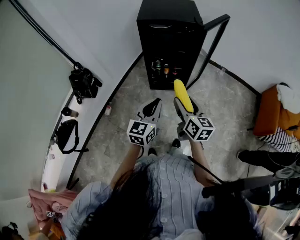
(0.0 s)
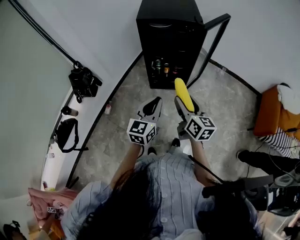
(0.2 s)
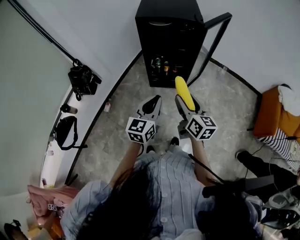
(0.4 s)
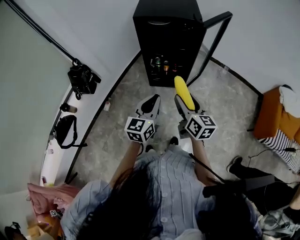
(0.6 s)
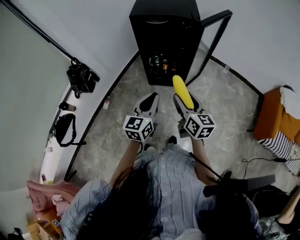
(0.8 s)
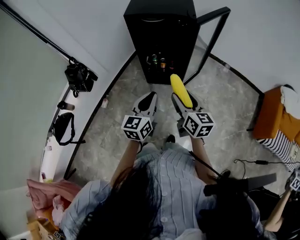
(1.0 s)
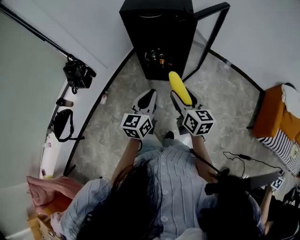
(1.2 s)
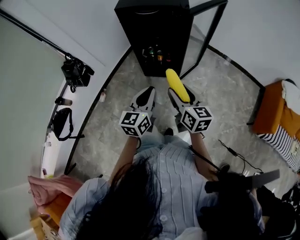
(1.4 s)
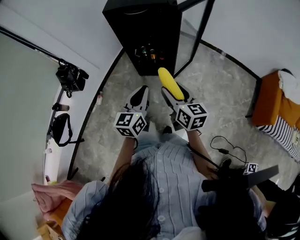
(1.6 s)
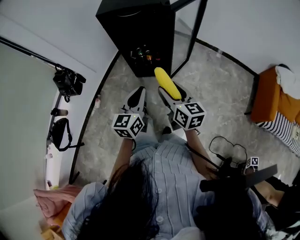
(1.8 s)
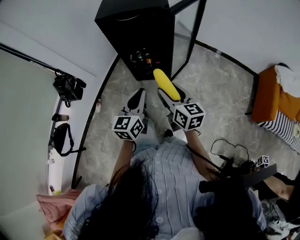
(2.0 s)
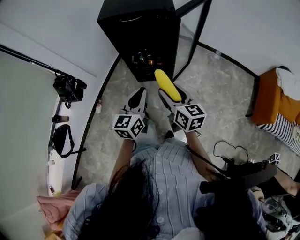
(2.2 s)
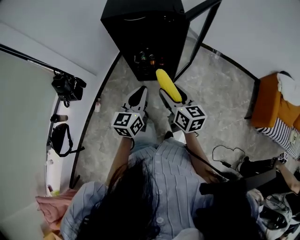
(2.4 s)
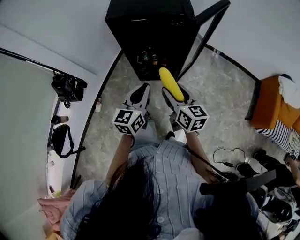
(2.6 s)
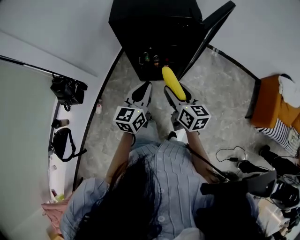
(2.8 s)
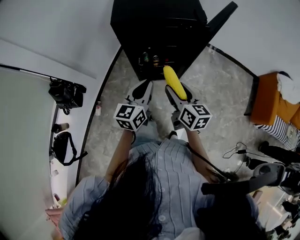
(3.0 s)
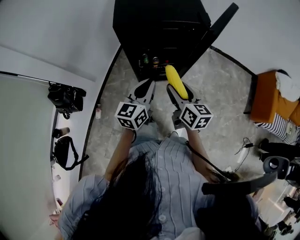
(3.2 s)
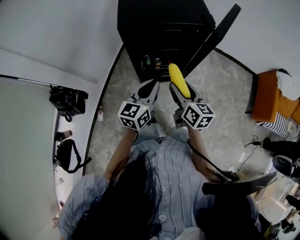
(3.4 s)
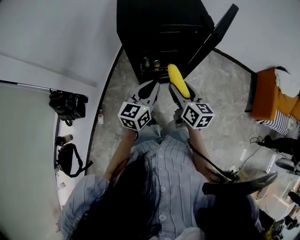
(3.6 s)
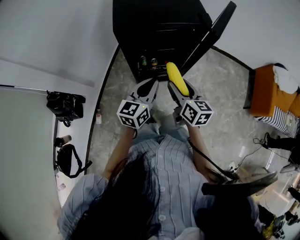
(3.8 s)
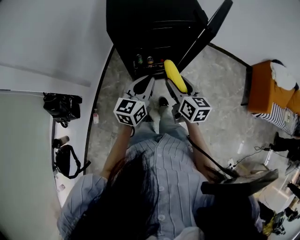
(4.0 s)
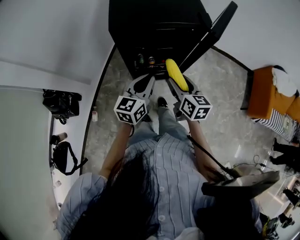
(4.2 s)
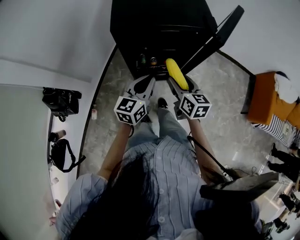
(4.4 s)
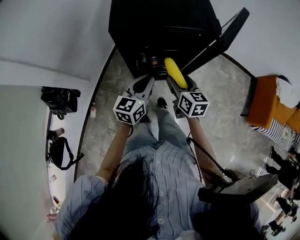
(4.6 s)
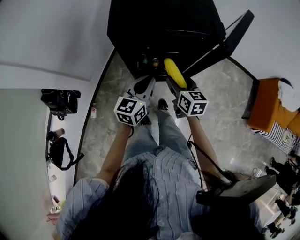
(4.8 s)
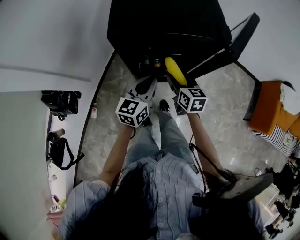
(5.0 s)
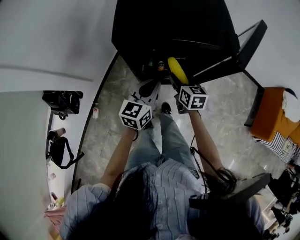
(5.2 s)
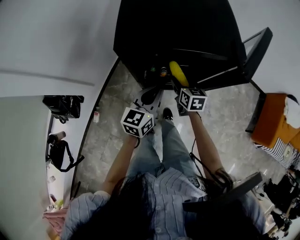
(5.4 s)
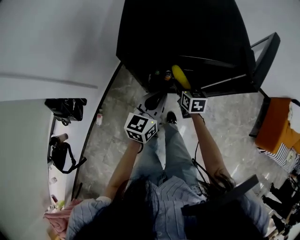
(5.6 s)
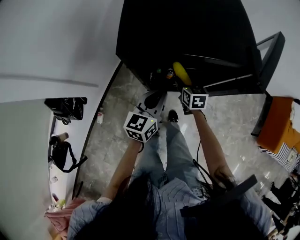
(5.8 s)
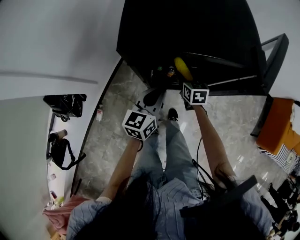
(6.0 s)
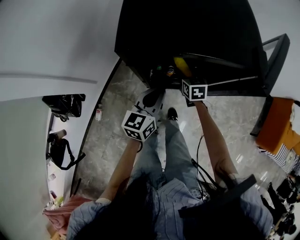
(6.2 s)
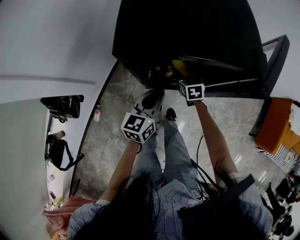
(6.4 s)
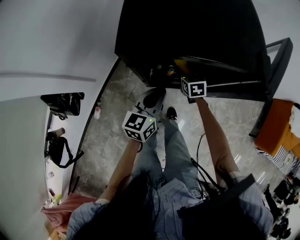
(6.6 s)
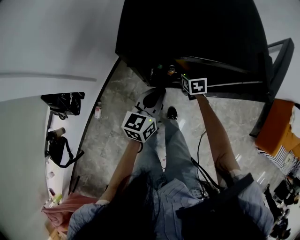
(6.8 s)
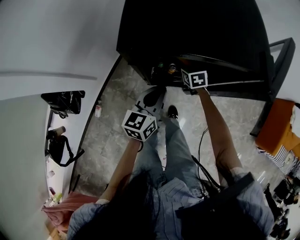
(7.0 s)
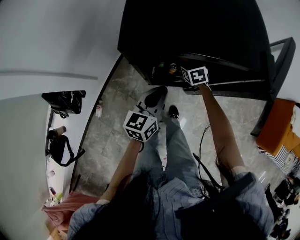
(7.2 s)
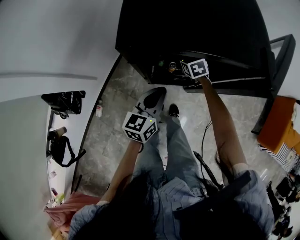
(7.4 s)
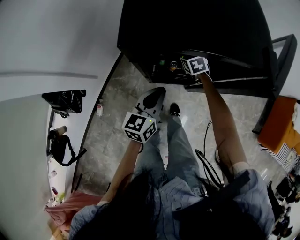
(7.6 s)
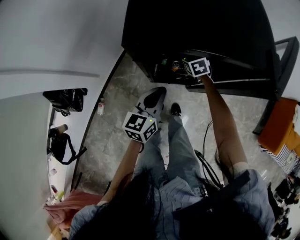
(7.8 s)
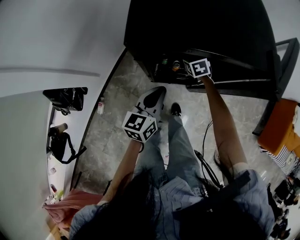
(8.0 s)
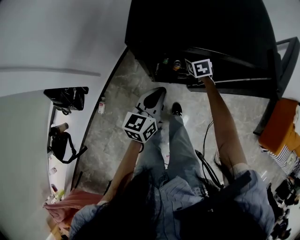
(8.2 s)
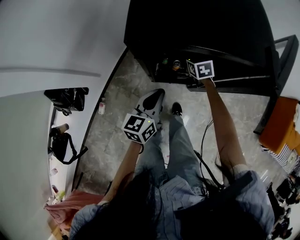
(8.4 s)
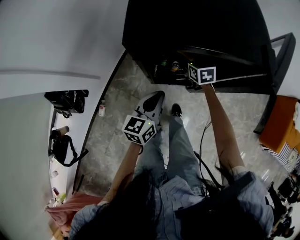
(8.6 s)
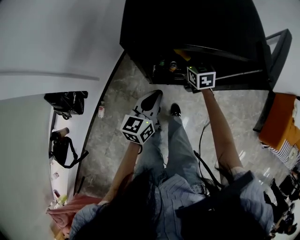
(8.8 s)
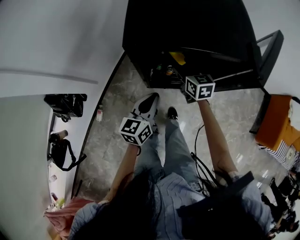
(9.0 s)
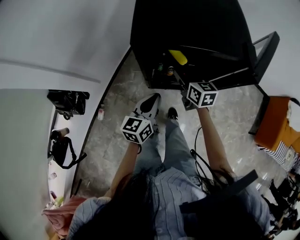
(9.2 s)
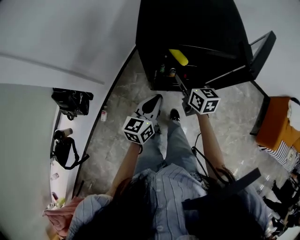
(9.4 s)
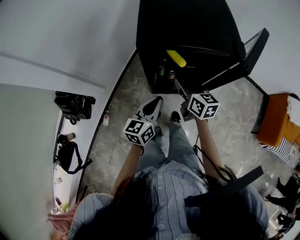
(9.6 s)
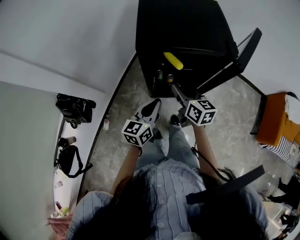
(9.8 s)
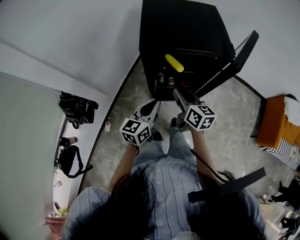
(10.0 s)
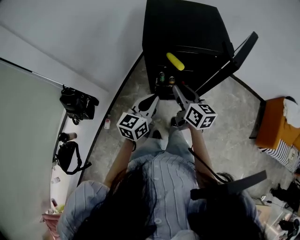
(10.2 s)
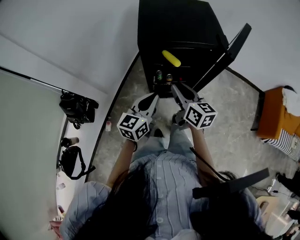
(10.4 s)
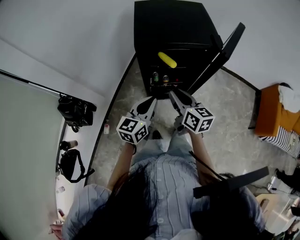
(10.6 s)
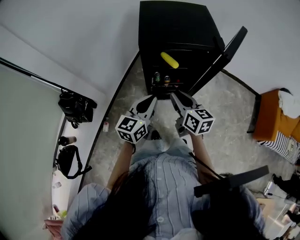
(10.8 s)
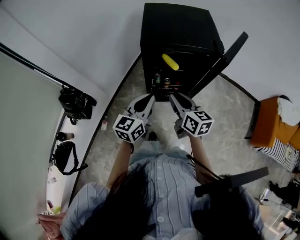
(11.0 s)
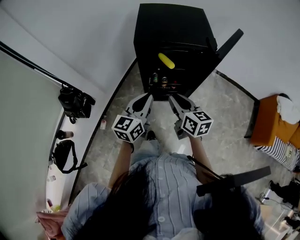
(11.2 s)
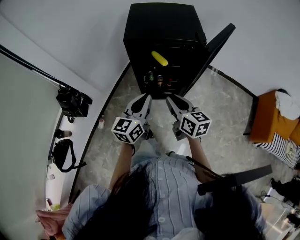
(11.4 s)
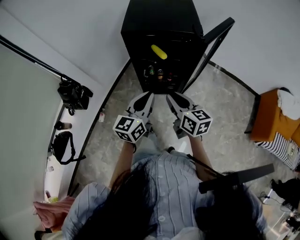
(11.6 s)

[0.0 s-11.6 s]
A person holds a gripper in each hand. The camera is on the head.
0.0 to 1.4 s: The left gripper moves to the right and forward, roughly 10 cm, while the right gripper travels to the right by about 10 cm.
1.4 to 2.8 s: Both grippers travel together forward and to the left, some 15 cm.
2.8 to 4.4 s: Both grippers travel together forward, approximately 10 cm.
4.4 to 5.8 s: The right gripper heads downward and forward, covering roughly 25 cm. Meanwhile the left gripper moves forward and downward, approximately 10 cm.
5.8 to 7.2 s: The right gripper travels forward by roughly 10 cm, and rotates some 20 degrees.
7.2 to 8.8 s: The right gripper is displaced upward by approximately 5 cm.
8.8 to 10.2 s: The right gripper shifts roughly 30 cm backward and upward, rotates about 30 degrees, and closes its fingers. The left gripper moves upward and backward, about 15 cm.
10.2 to 11.6 s: The right gripper moves backward and to the right, about 20 cm. Meanwhile the left gripper is displaced backward, to the right and upward by roughly 15 cm.

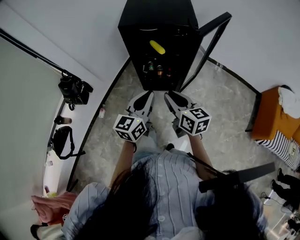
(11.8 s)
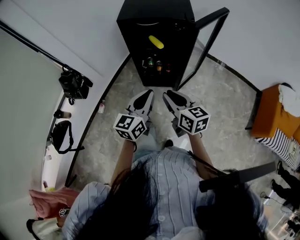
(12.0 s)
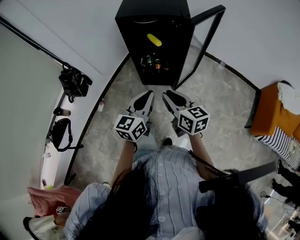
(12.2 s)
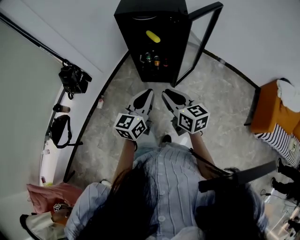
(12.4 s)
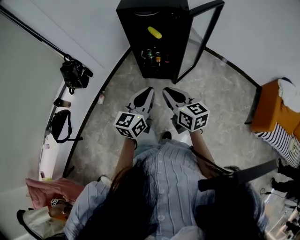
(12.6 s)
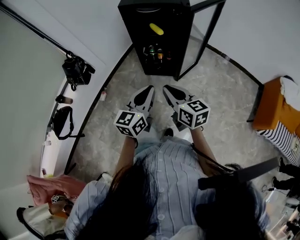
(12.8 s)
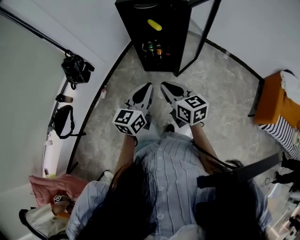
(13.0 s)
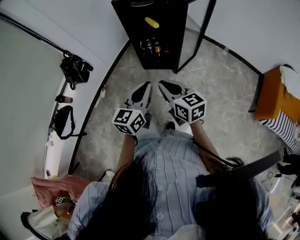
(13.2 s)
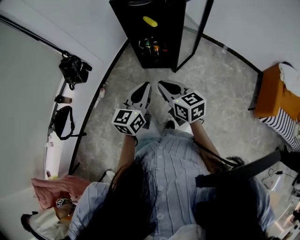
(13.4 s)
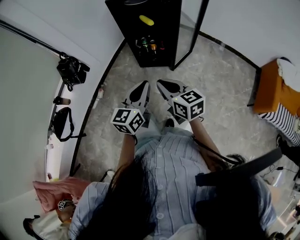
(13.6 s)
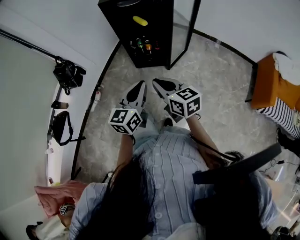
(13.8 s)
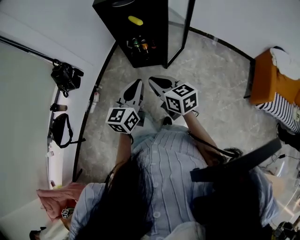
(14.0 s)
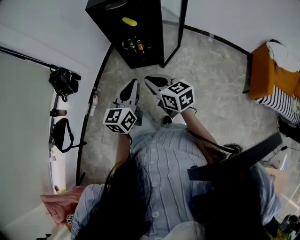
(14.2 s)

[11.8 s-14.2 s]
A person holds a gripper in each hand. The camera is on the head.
11.8 to 13.0 s: Both grippers travel together backward, about 15 cm.
13.0 to 14.2 s: There are only small adjustments of the grippers.

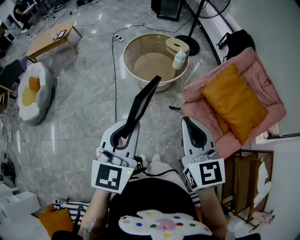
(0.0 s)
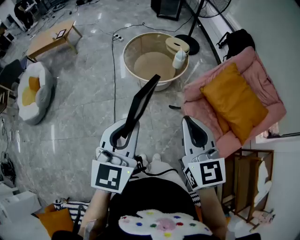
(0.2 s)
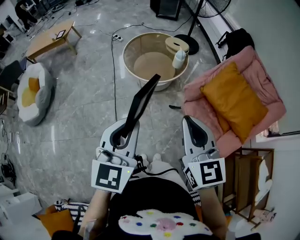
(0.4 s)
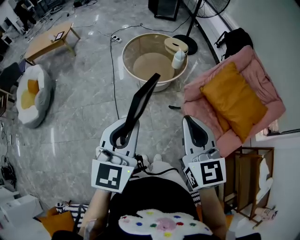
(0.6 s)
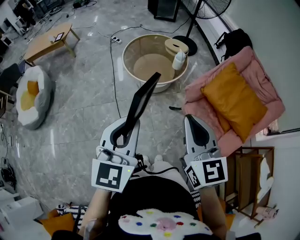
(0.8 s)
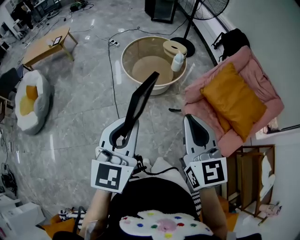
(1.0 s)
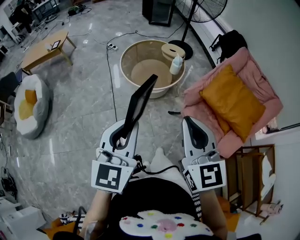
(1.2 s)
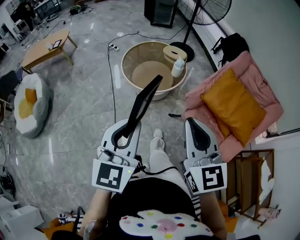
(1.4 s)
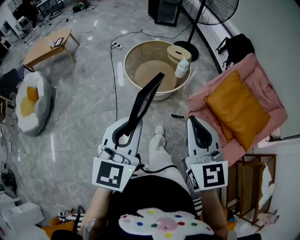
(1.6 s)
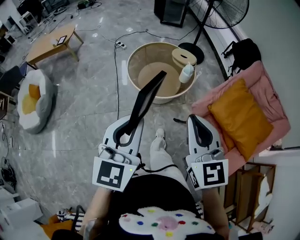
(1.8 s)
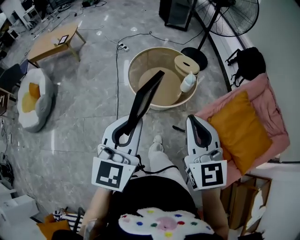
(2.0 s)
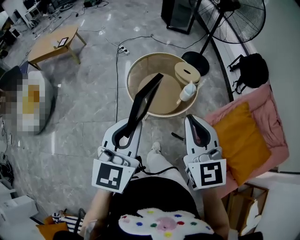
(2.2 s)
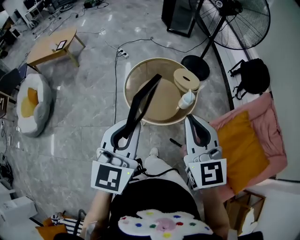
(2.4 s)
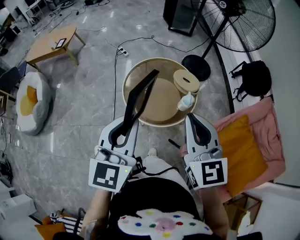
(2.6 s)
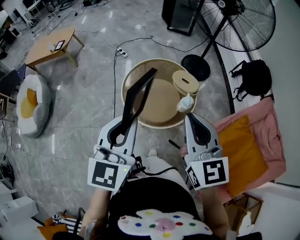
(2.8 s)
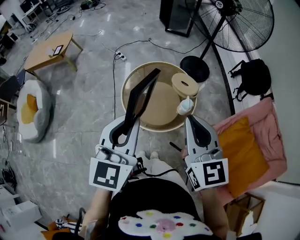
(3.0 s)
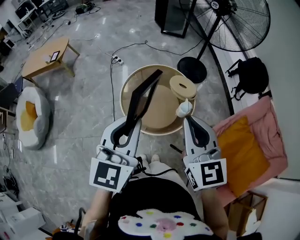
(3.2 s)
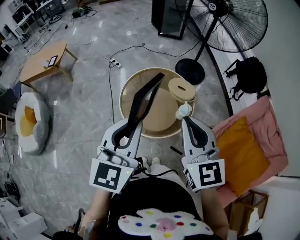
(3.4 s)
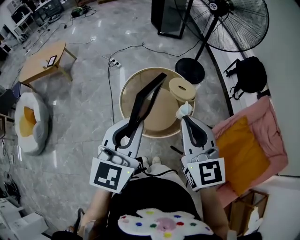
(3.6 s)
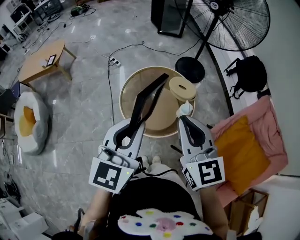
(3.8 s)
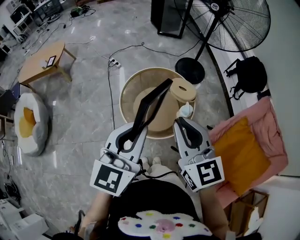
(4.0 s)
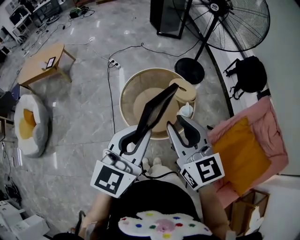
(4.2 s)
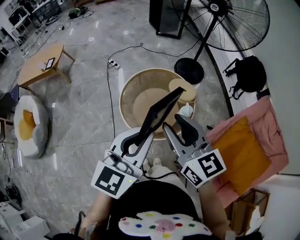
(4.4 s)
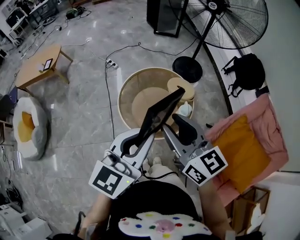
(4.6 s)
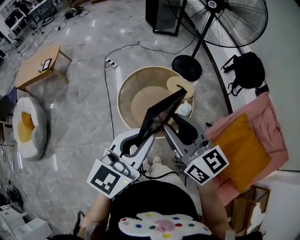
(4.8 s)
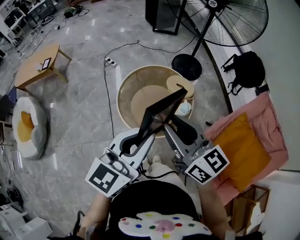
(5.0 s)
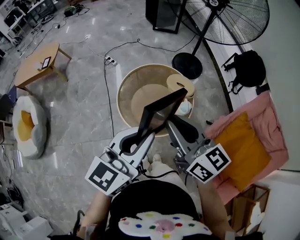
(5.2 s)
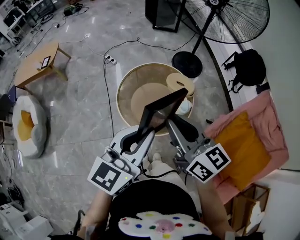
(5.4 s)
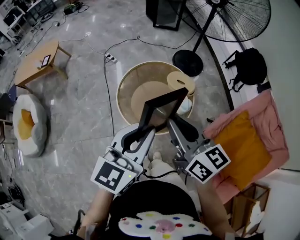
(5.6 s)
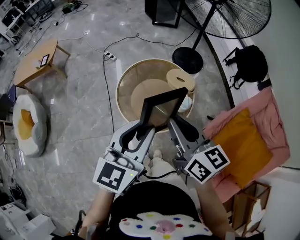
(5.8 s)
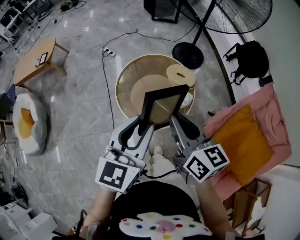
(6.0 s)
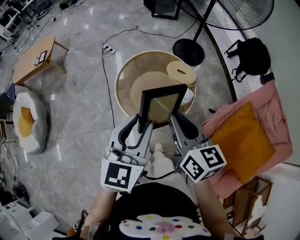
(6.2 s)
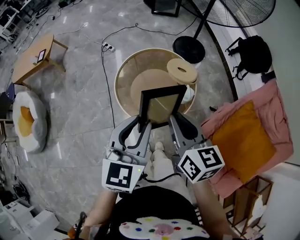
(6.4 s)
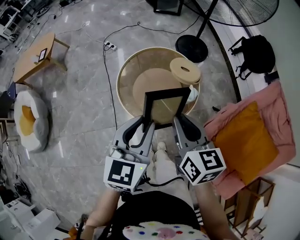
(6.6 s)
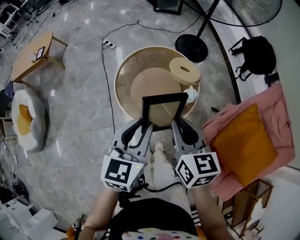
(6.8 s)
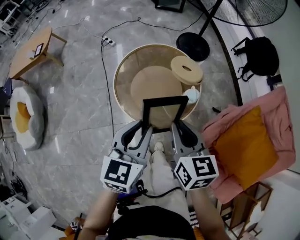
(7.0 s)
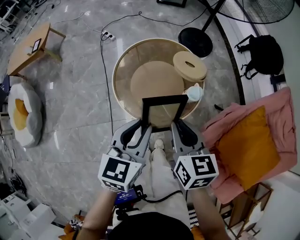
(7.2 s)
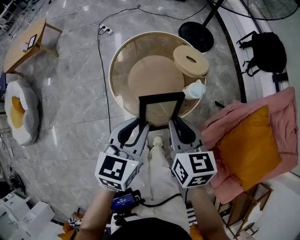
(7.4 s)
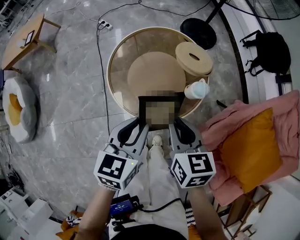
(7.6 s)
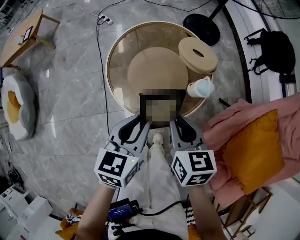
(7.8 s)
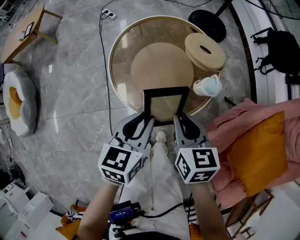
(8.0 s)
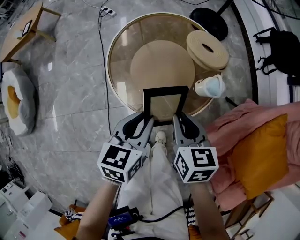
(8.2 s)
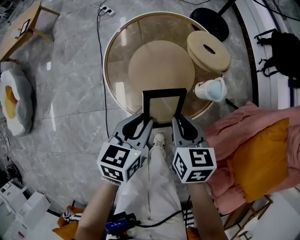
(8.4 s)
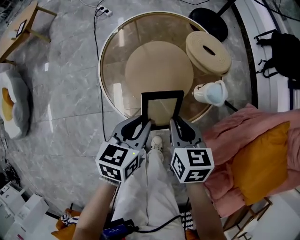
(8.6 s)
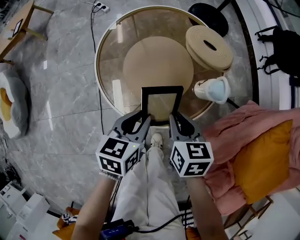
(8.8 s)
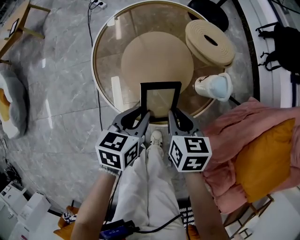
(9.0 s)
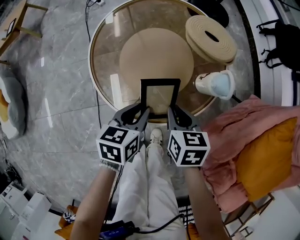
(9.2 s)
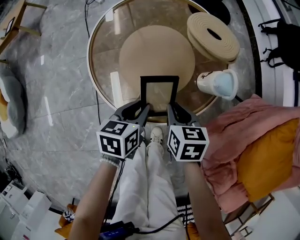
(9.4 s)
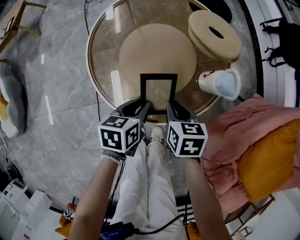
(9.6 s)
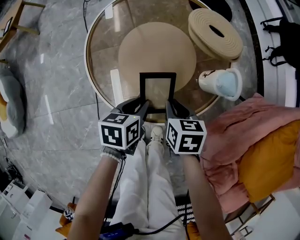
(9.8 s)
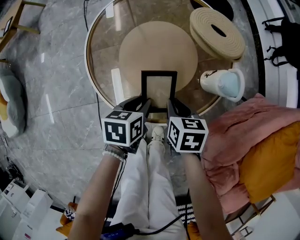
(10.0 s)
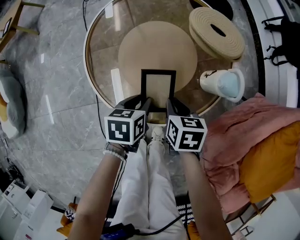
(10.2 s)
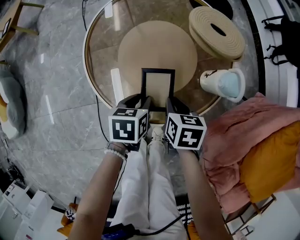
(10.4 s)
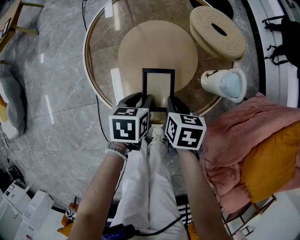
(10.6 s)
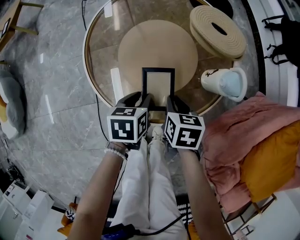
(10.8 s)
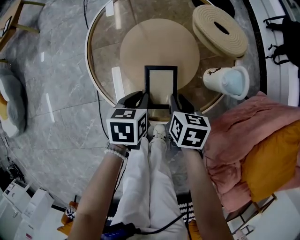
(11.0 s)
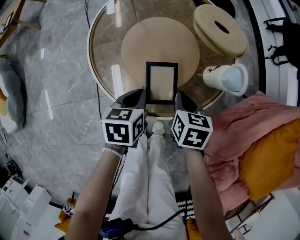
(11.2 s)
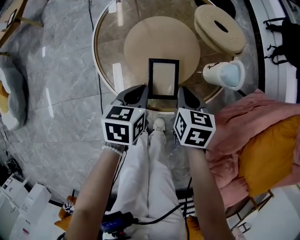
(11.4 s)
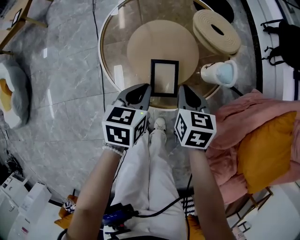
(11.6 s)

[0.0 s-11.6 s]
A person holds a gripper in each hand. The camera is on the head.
0.0 to 1.4 s: The grippers make only small movements.
1.4 to 2.8 s: The grippers both shift forward by about 30 cm.
2.8 to 4.4 s: The left gripper turns by approximately 20 degrees. Meanwhile the right gripper shifts roughly 5 cm to the left, and opens its fingers.
4.4 to 5.8 s: The grippers stay close to where they were, moving slightly.
5.8 to 7.2 s: Both grippers travel together downward, approximately 15 cm. The right gripper turns by approximately 30 degrees.
7.2 to 8.8 s: Both grippers move downward, some 25 cm. The left gripper swivels approximately 20 degrees.
8.8 to 10.2 s: The two grippers go roughly 10 cm downward.
10.2 to 11.6 s: The two grippers go approximately 10 cm upward. The left gripper closes up.
